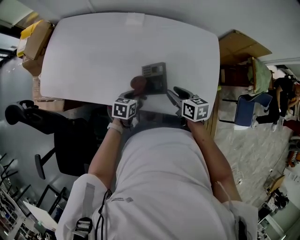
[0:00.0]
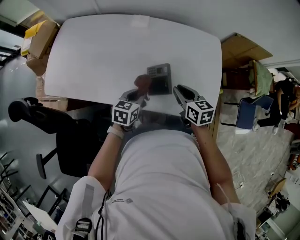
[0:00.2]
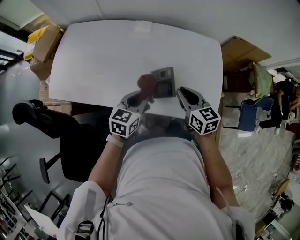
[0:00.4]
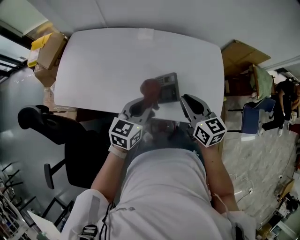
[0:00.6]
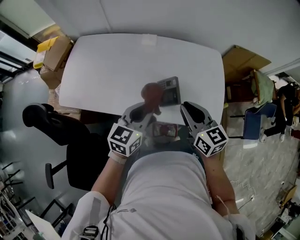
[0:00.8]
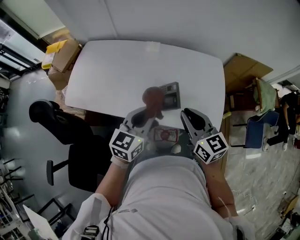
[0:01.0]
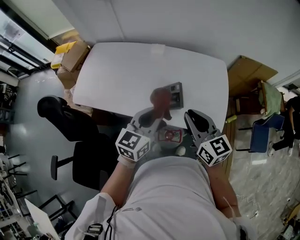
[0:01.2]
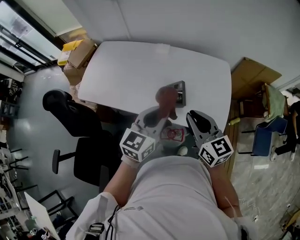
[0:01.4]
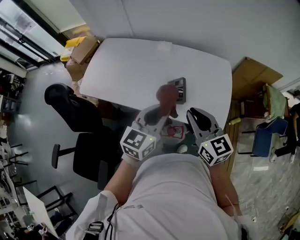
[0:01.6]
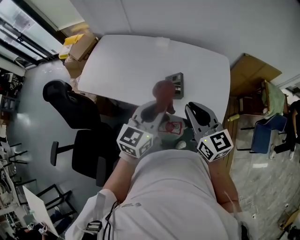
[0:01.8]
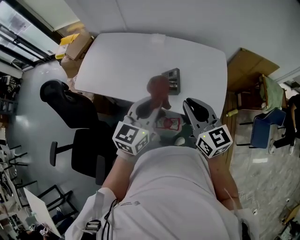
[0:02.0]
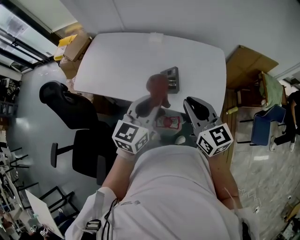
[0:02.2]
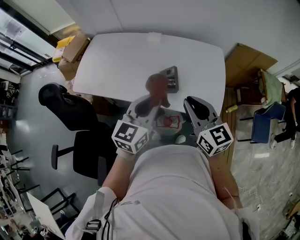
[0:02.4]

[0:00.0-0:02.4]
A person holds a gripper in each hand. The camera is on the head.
0:00.0 to 0:01.2: The two grippers go about 30 cm upward. The right gripper changes its angle by roughly 40 degrees, and closes up, while the left gripper tips its fingers upward by roughly 30 degrees.
0:01.2 to 0:02.4: The right gripper ends up roughly 5 cm from where it was. The left gripper shifts by roughly 5 cm.

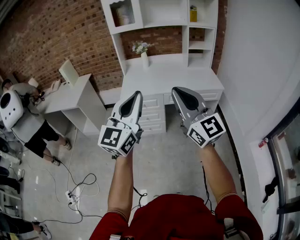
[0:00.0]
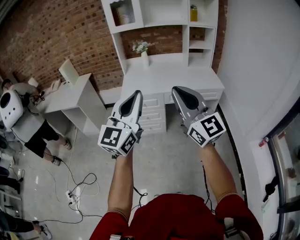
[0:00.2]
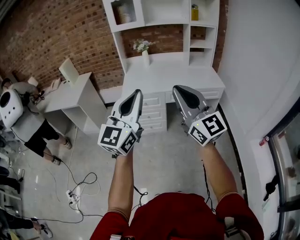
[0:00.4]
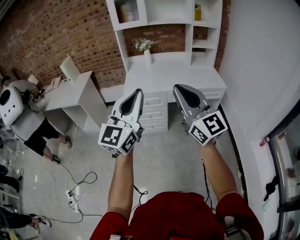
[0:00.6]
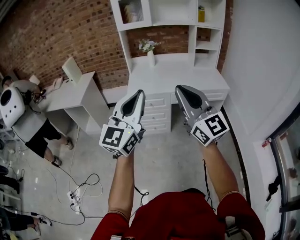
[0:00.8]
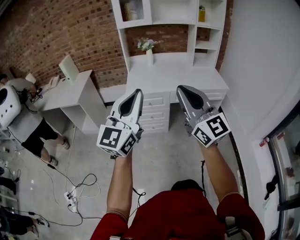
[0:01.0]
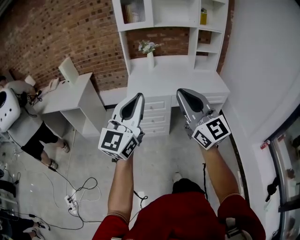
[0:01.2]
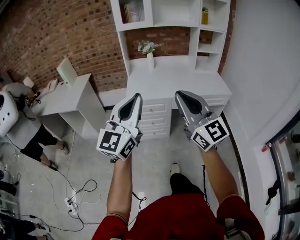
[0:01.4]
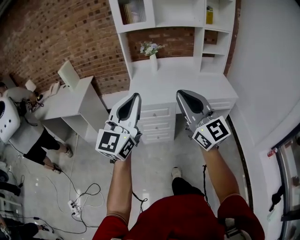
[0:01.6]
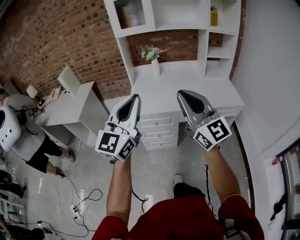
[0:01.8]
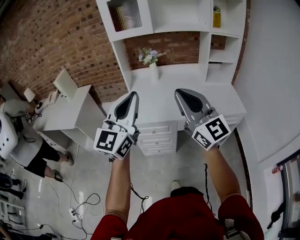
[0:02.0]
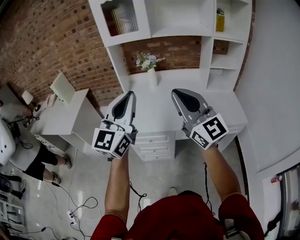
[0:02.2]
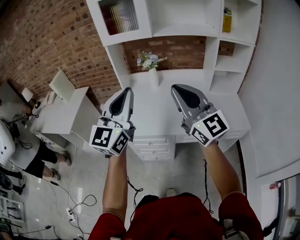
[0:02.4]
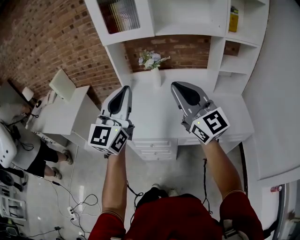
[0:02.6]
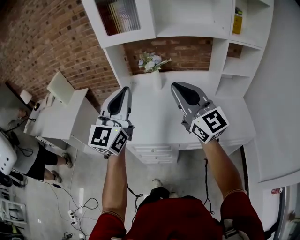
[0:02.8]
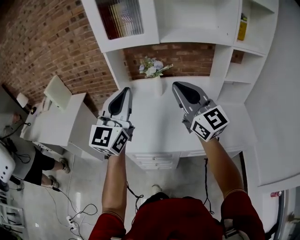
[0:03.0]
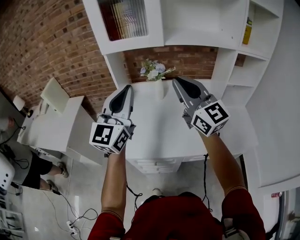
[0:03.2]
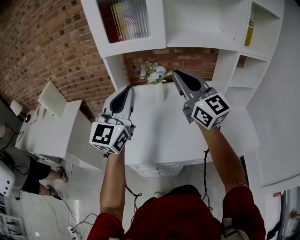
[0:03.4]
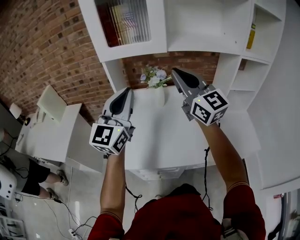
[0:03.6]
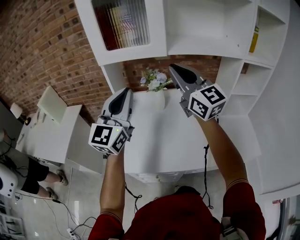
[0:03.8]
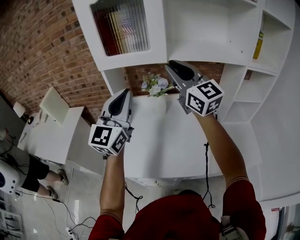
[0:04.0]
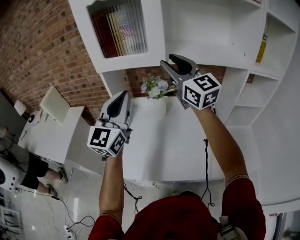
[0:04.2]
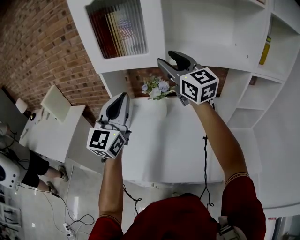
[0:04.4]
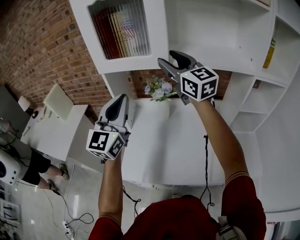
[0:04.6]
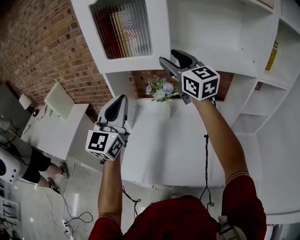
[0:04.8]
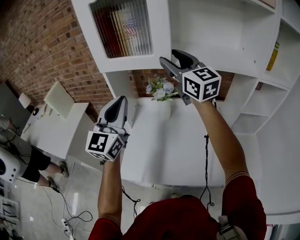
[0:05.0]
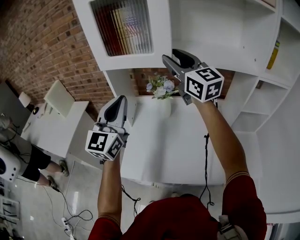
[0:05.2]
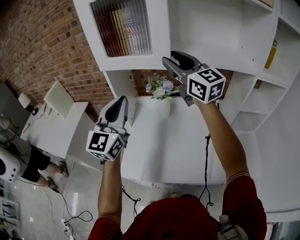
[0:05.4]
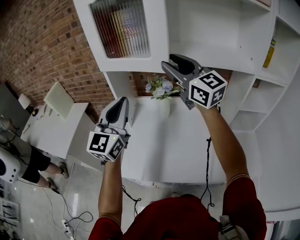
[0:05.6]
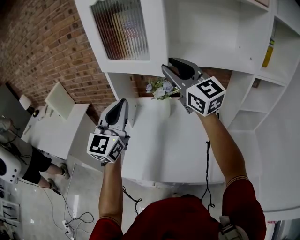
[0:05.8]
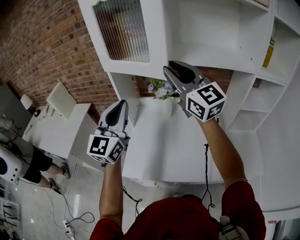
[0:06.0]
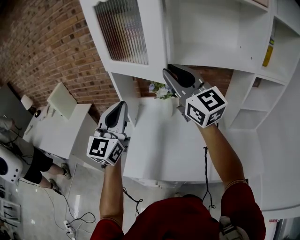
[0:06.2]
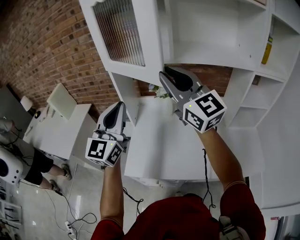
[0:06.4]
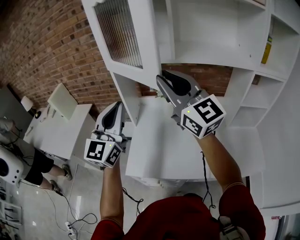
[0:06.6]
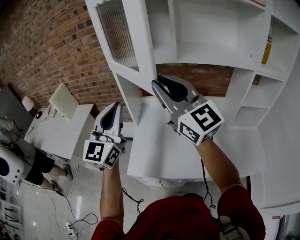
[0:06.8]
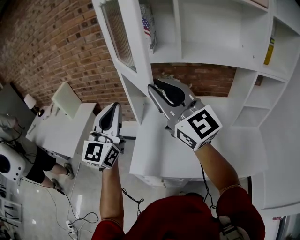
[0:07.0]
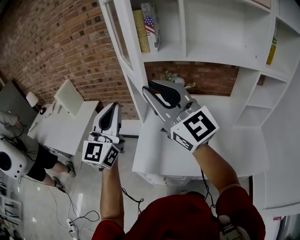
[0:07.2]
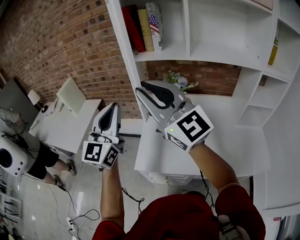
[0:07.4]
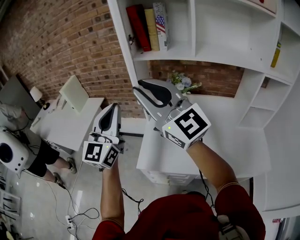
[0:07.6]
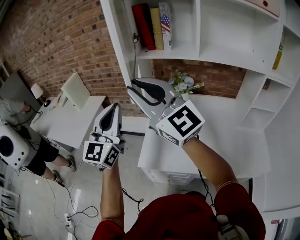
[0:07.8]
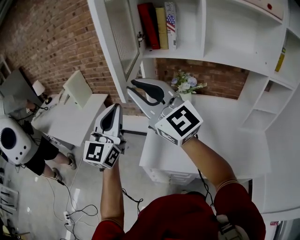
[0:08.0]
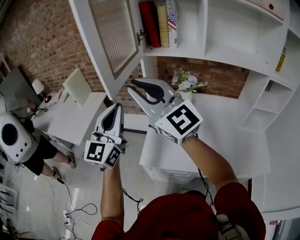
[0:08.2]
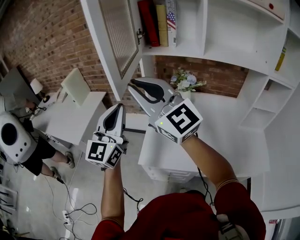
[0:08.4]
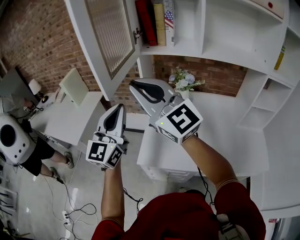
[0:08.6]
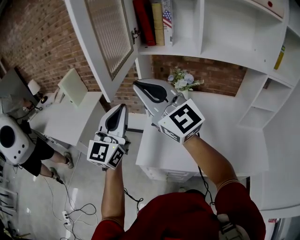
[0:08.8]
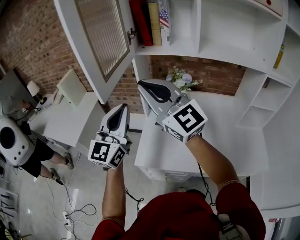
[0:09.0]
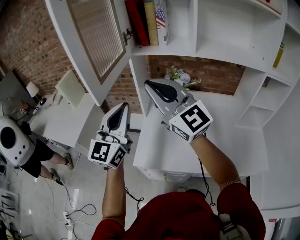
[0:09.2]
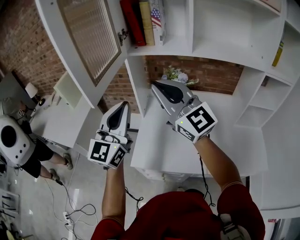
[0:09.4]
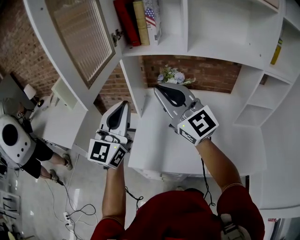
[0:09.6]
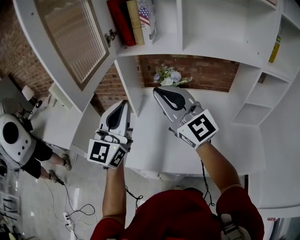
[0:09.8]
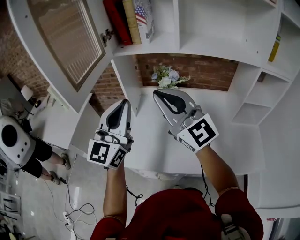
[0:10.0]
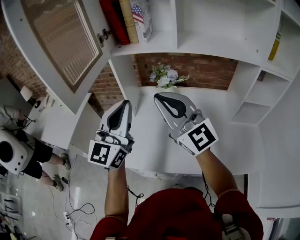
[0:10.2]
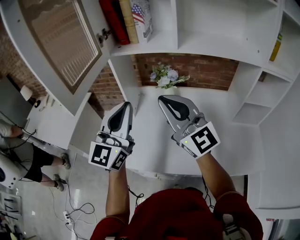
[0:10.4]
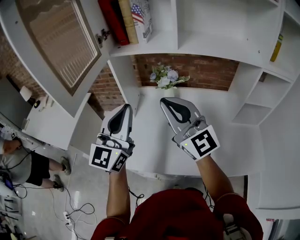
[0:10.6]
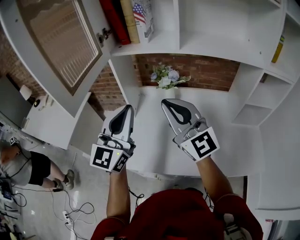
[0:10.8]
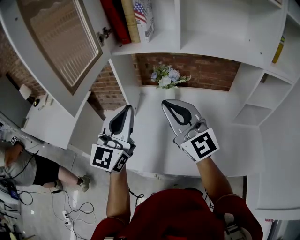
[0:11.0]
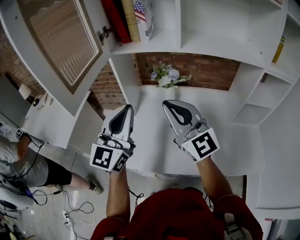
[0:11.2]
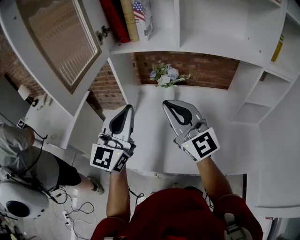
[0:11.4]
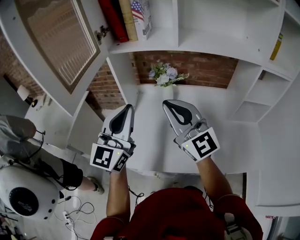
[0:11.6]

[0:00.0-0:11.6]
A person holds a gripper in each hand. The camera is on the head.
0:00.0 to 0:01.4: Both grippers travel together to the left and forward, about 10 cm.
0:01.4 to 0:02.8: The pair of grippers is taken forward, some 50 cm.
0:02.8 to 0:04.4: Both grippers travel together forward, approximately 25 cm. The right gripper opens.
0:04.4 to 0:05.8: The right gripper shifts by some 5 cm.
0:05.8 to 0:07.2: The left gripper moves to the left and backward, roughly 10 cm. The right gripper moves to the left and backward, roughly 20 cm.
0:07.2 to 0:08.8: The right gripper travels to the left by approximately 10 cm. The left gripper changes place by about 5 cm.
0:08.8 to 0:10.2: The left gripper is displaced to the right by about 15 cm. The right gripper goes approximately 15 cm to the right and downward.
0:10.2 to 0:11.6: The grippers make only small movements.

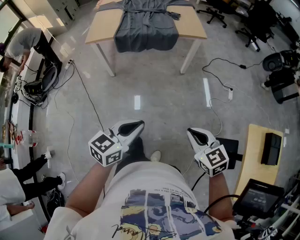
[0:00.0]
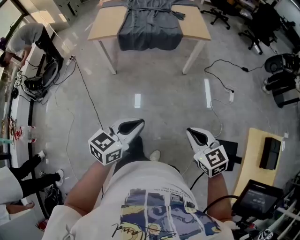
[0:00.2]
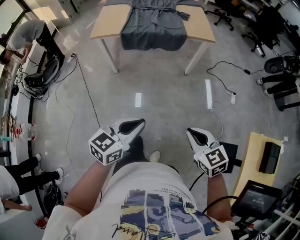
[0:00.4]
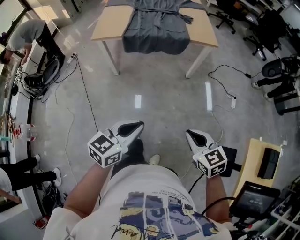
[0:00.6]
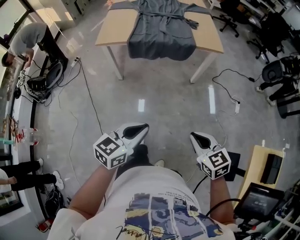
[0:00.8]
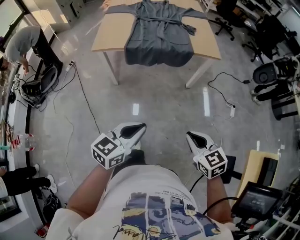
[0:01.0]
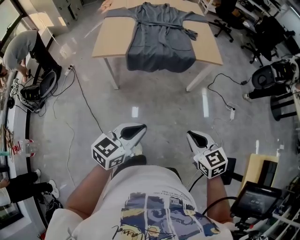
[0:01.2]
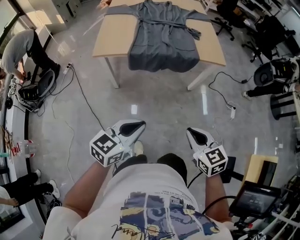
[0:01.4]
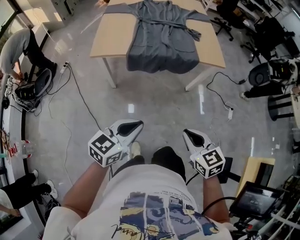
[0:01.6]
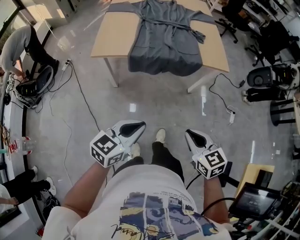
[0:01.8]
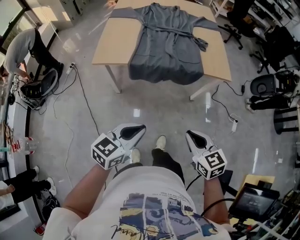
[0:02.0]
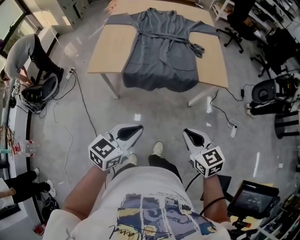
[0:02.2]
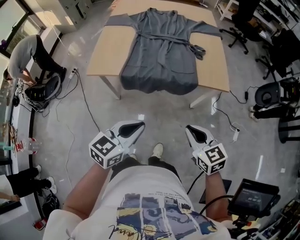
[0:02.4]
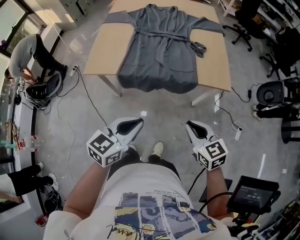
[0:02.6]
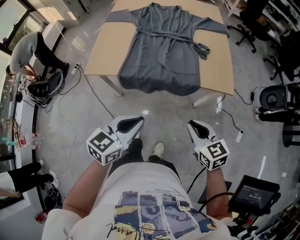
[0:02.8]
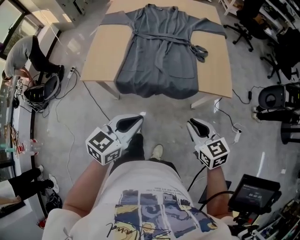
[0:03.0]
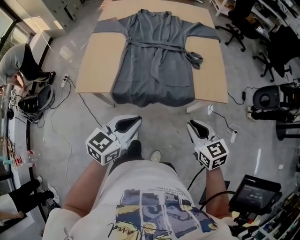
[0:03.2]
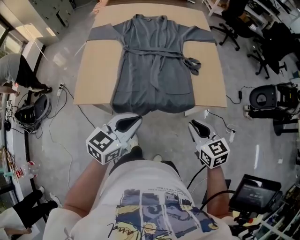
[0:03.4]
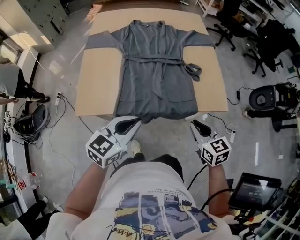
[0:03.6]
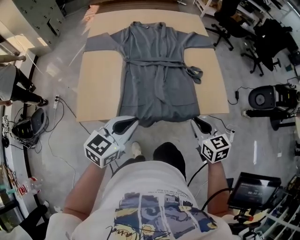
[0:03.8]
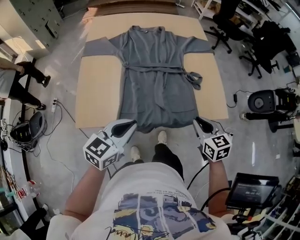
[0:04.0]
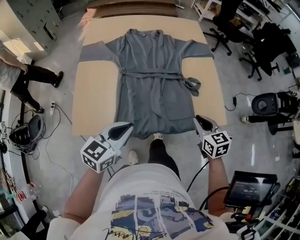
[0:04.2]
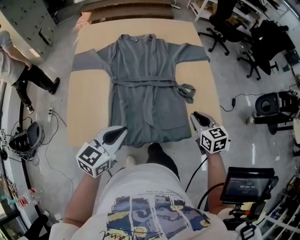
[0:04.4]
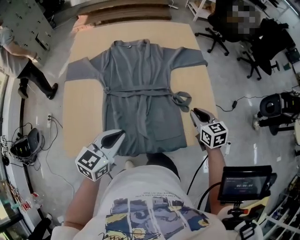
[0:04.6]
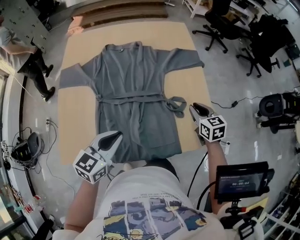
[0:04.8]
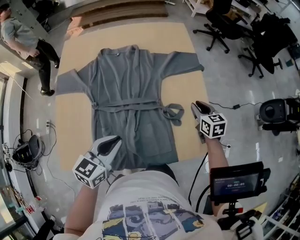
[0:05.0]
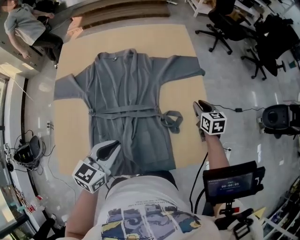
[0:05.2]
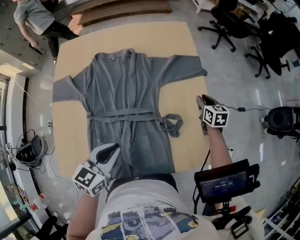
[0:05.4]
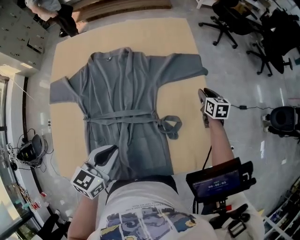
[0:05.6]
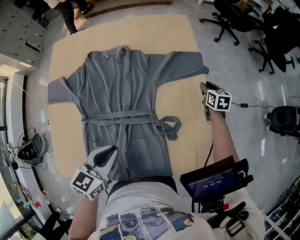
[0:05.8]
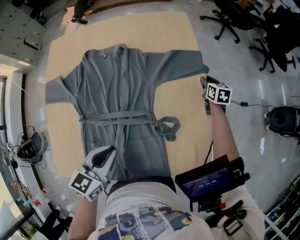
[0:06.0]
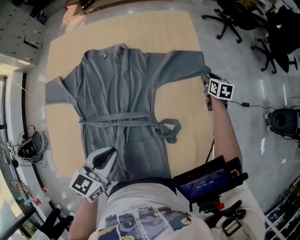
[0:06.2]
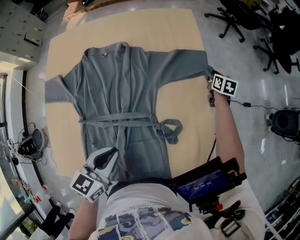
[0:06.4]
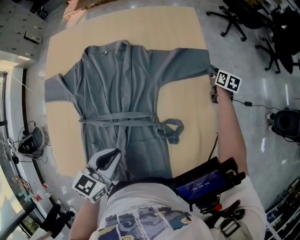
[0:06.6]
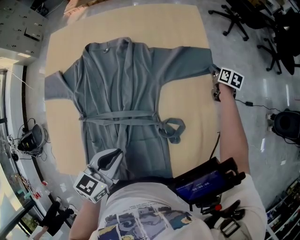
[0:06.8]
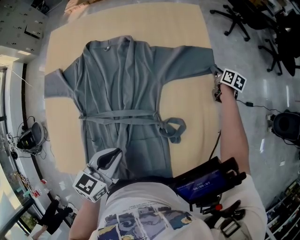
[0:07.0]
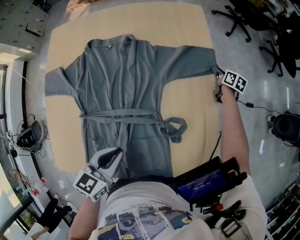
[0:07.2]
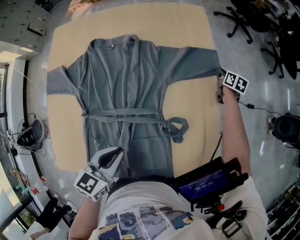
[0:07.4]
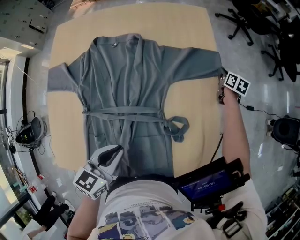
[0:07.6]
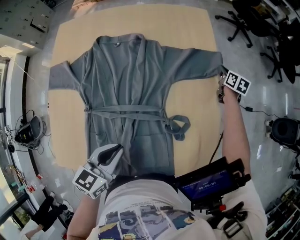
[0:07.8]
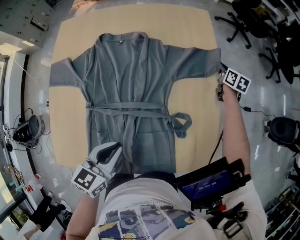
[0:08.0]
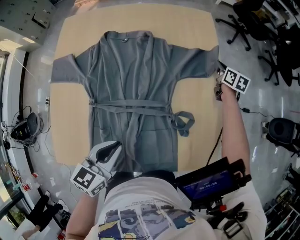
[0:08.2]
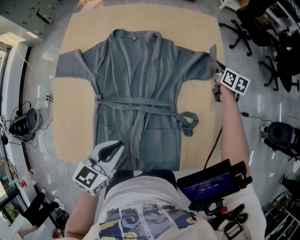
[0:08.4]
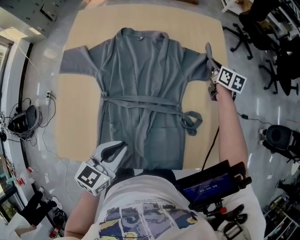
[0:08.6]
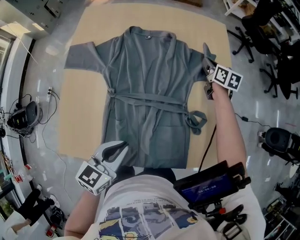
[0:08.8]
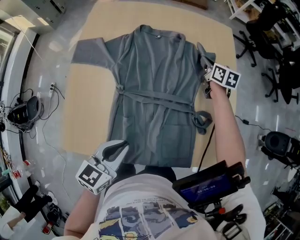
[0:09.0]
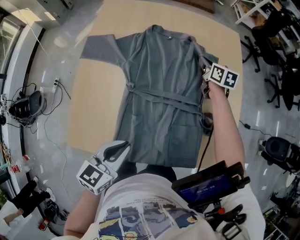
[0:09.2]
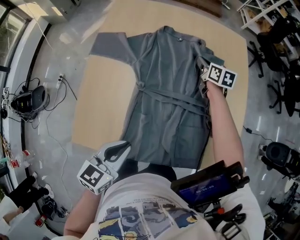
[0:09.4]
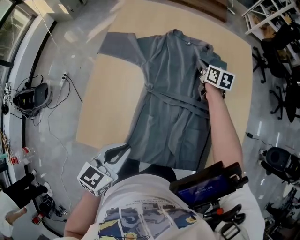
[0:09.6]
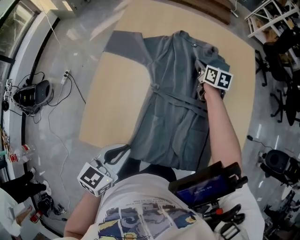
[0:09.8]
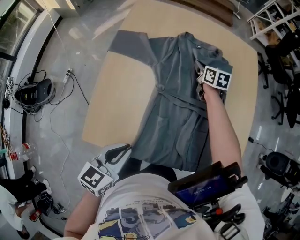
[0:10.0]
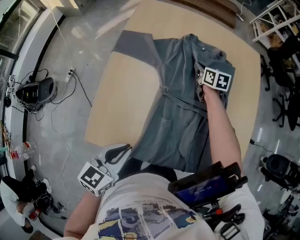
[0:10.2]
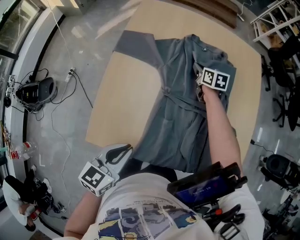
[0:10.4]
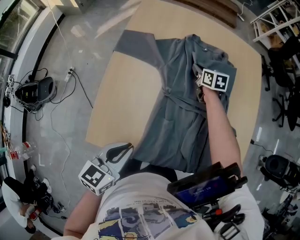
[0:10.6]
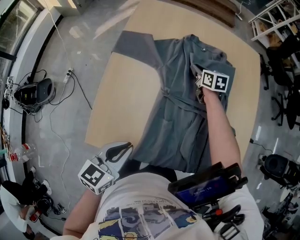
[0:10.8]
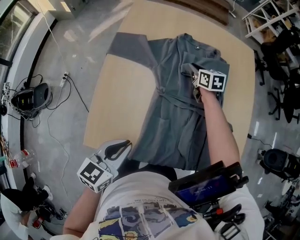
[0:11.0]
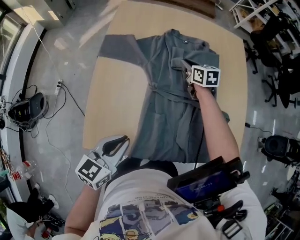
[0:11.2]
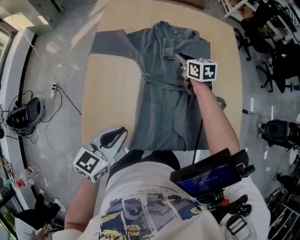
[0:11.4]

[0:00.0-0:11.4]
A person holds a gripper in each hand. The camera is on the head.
0:00.0 to 0:01.4: Both grippers move forward and to the left, some 25 cm.
0:01.4 to 0:02.8: The grippers both shift forward by approximately 25 cm.
0:02.8 to 0:04.2: The right gripper goes roughly 25 cm forward, and turns by about 20 degrees. The left gripper is displaced forward and to the left by some 25 cm.
0:04.2 to 0:05.6: The right gripper shifts approximately 40 cm forward. The left gripper moves forward, approximately 20 cm.
0:05.6 to 0:07.2: The right gripper shifts some 15 cm forward and downward, and rotates some 20 degrees.
0:07.2 to 0:08.6: The left gripper shifts approximately 10 cm backward and to the left; the right gripper is displaced to the left and upward by roughly 25 cm, rotates roughly 20 degrees, and closes its fingers.
0:08.6 to 0:10.0: The left gripper shifts about 20 cm to the left and backward, while the right gripper moves to the left, approximately 35 cm.
0:10.0 to 0:11.4: The right gripper shifts some 5 cm backward.
